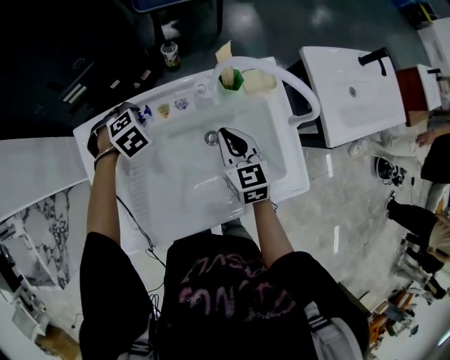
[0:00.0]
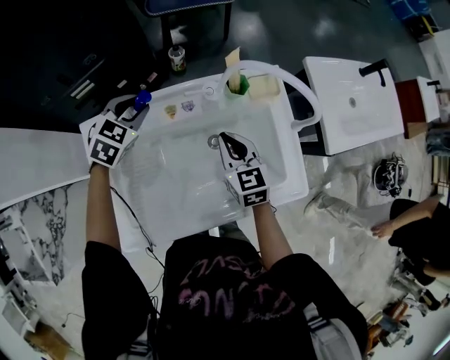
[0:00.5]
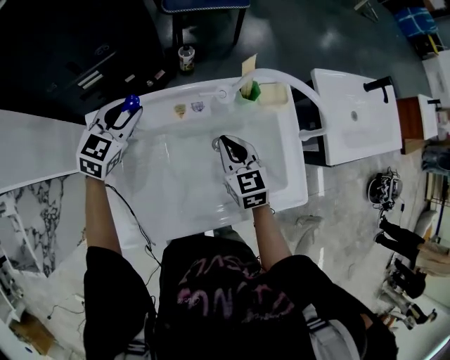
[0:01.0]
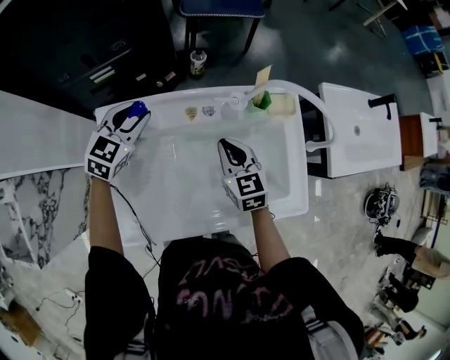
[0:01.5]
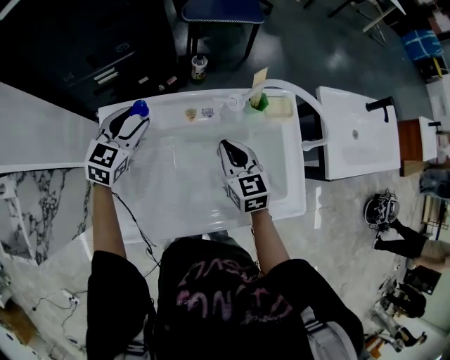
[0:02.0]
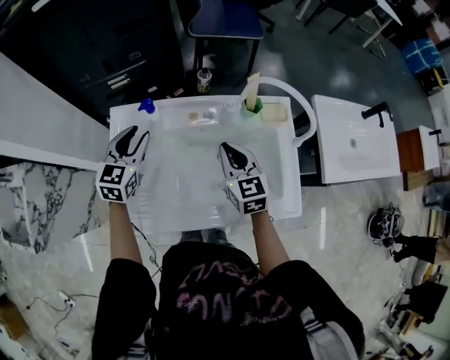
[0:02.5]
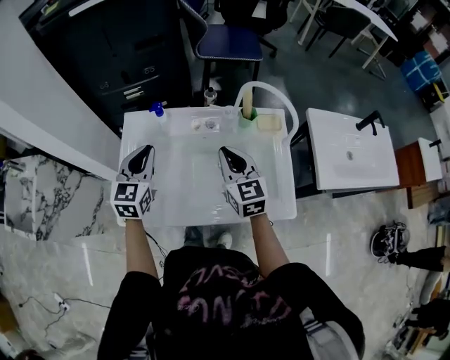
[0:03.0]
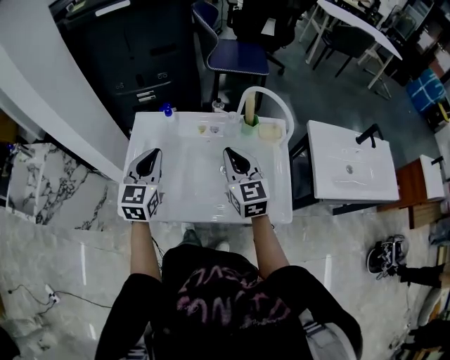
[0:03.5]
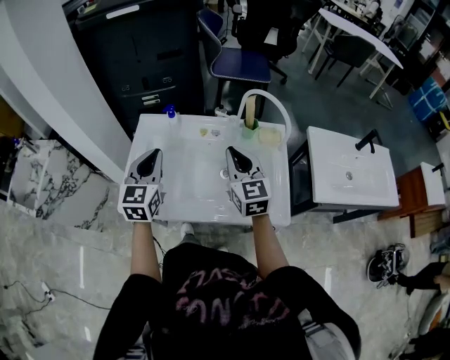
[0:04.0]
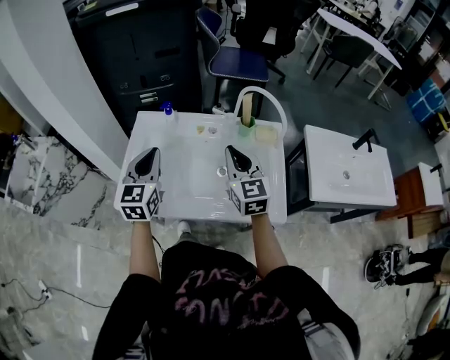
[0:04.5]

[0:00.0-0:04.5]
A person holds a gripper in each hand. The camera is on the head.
0:00.0 to 0:02.0: The right gripper changes place by roughly 5 cm. The left gripper heads upward, covering about 15 cm, and tilts its fingers about 50 degrees upward.
0:02.0 to 0:04.5: The left gripper is displaced backward and upward by roughly 30 cm, turns by approximately 40 degrees, and closes its fingers; the right gripper moves upward and backward, approximately 20 cm, and rotates approximately 20 degrees.

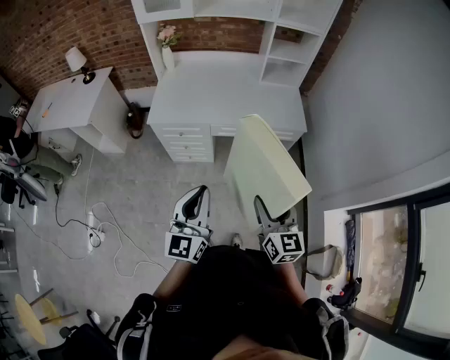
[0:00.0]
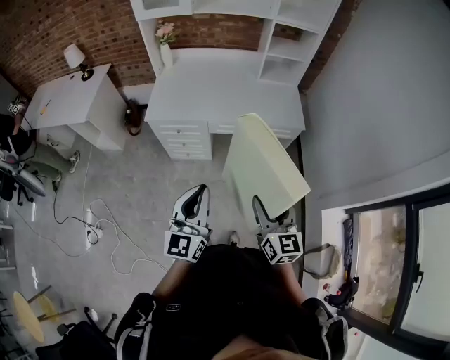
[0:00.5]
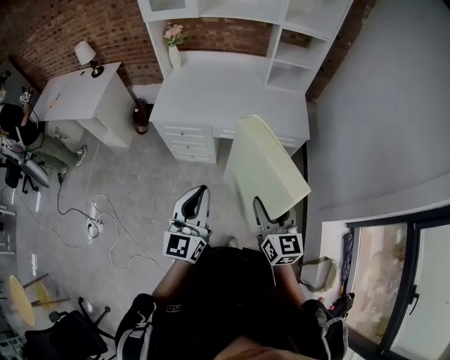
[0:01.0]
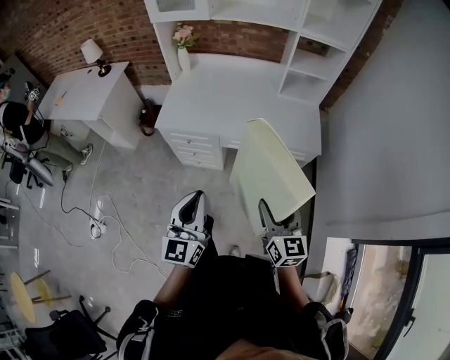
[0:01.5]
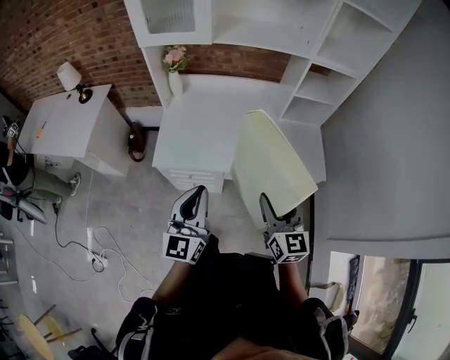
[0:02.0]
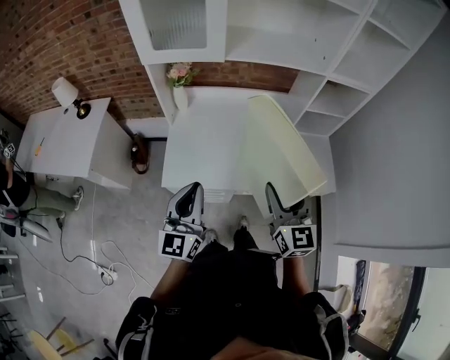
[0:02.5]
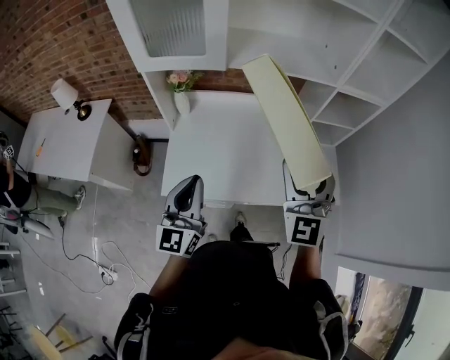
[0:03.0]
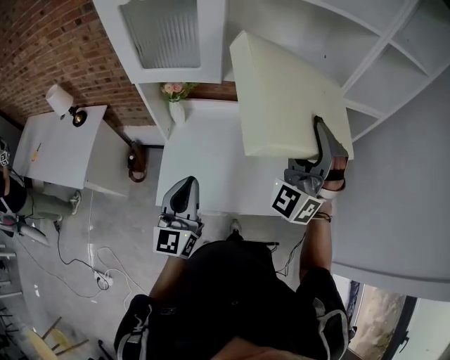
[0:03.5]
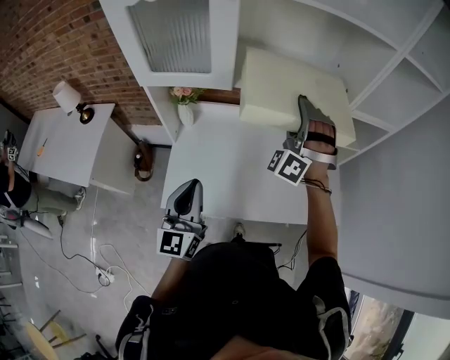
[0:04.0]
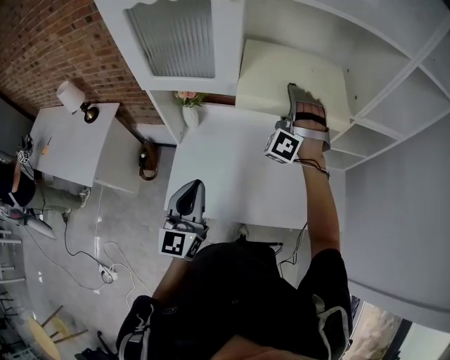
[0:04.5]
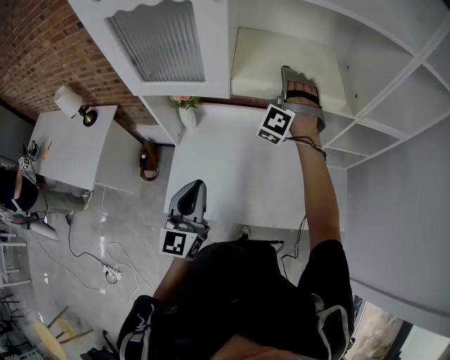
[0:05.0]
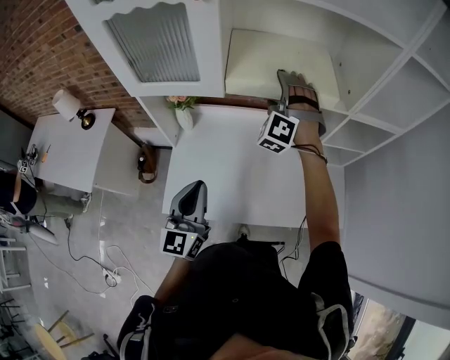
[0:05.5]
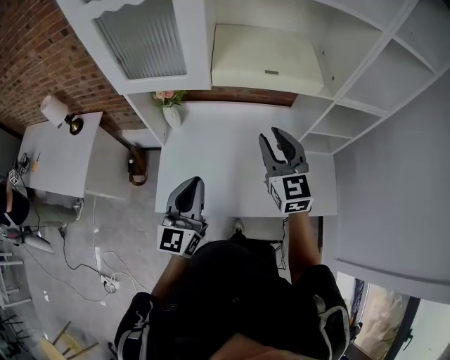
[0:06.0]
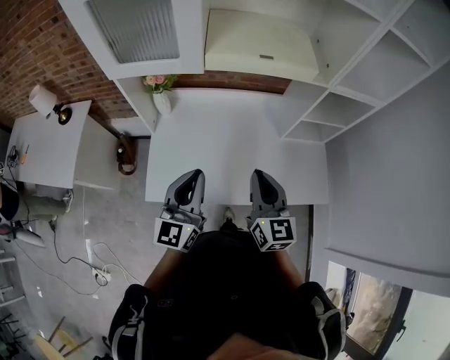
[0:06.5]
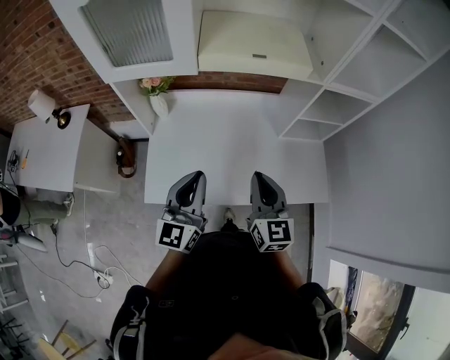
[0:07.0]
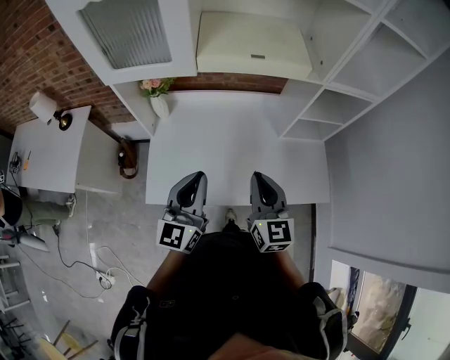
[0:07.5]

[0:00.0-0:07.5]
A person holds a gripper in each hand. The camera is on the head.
0:00.0 to 0:02.0: Both grippers are carried forward, about 60 cm.
0:02.0 to 0:04.0: The left gripper goes roughly 30 cm forward, while the right gripper shifts roughly 50 cm forward, and rotates around the line of its fingers by about 90 degrees, counterclockwise from behind.
0:04.0 to 0:05.5: The right gripper heads forward and downward, covering about 15 cm, and opens its fingers. Meanwhile the left gripper goes roughly 5 cm forward.
0:05.5 to 0:07.5: The left gripper is displaced to the right by approximately 5 cm. Meanwhile the right gripper is displaced backward by approximately 30 cm, twists approximately 80 degrees clockwise, seen from behind, and closes up.

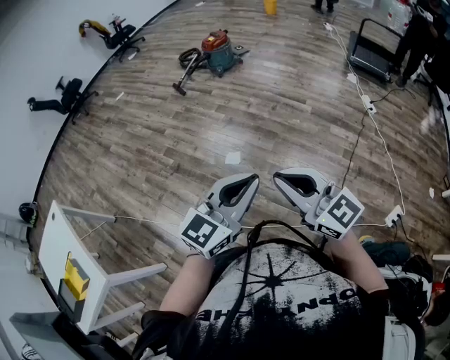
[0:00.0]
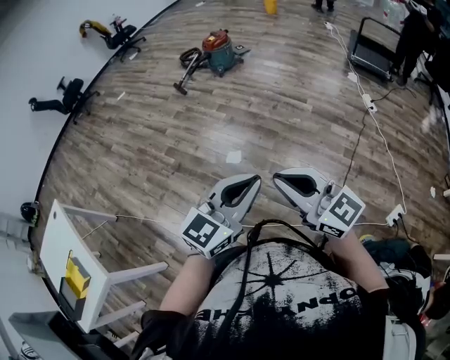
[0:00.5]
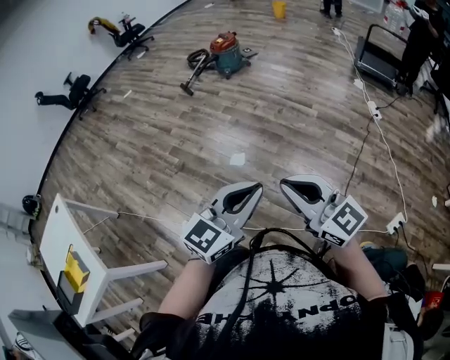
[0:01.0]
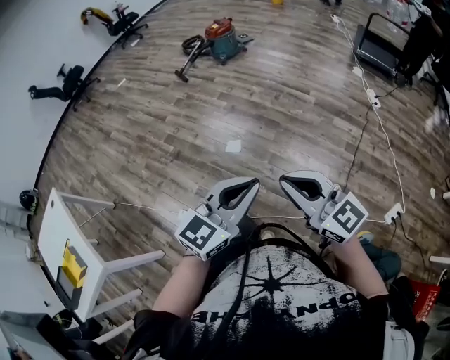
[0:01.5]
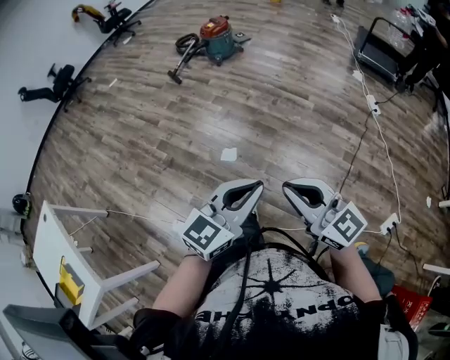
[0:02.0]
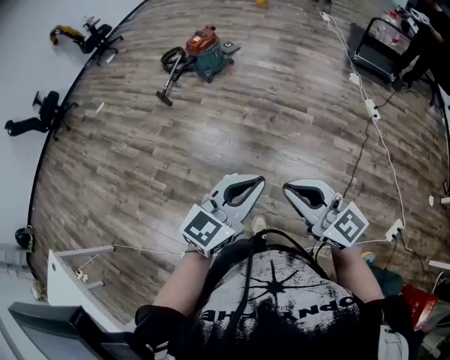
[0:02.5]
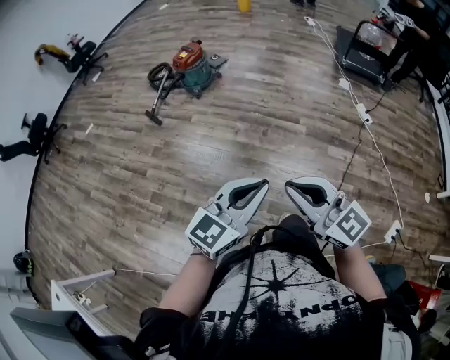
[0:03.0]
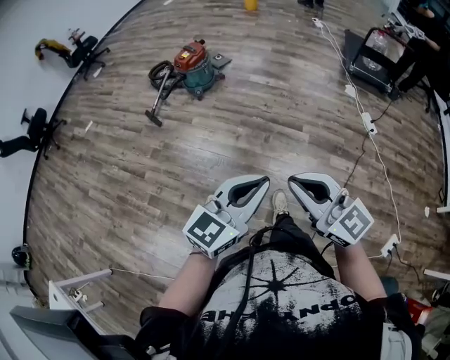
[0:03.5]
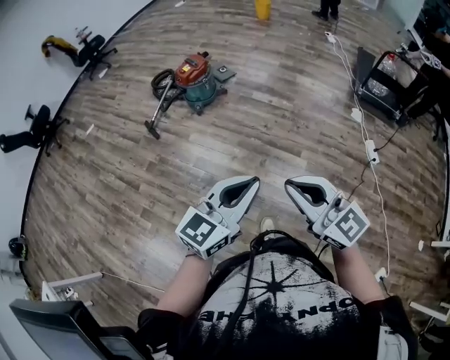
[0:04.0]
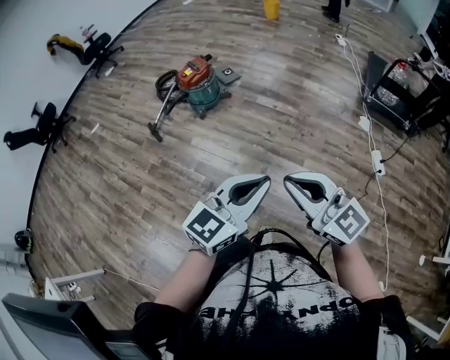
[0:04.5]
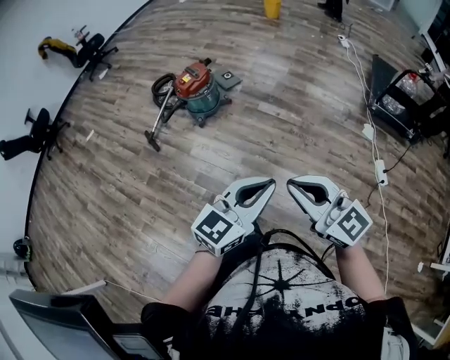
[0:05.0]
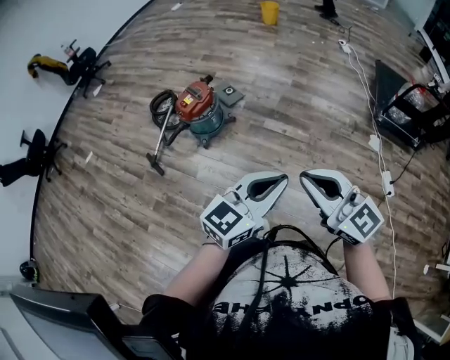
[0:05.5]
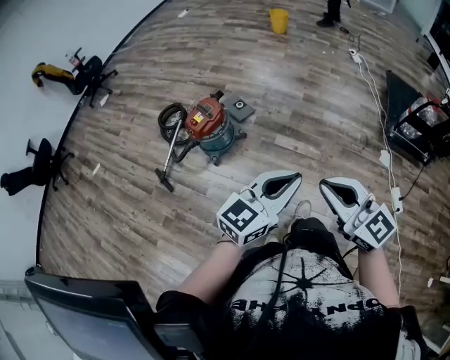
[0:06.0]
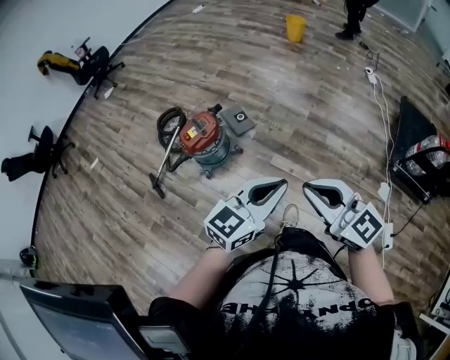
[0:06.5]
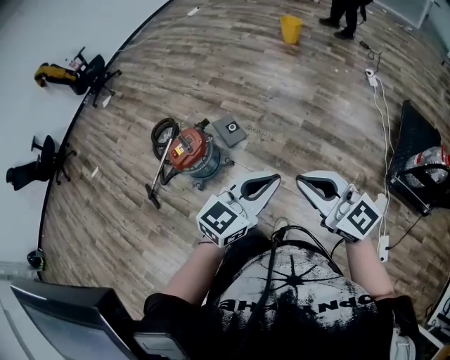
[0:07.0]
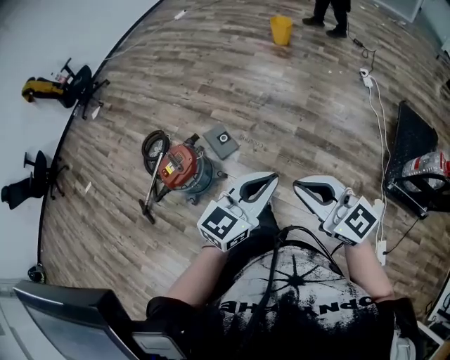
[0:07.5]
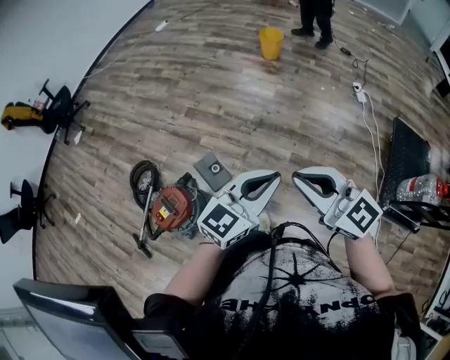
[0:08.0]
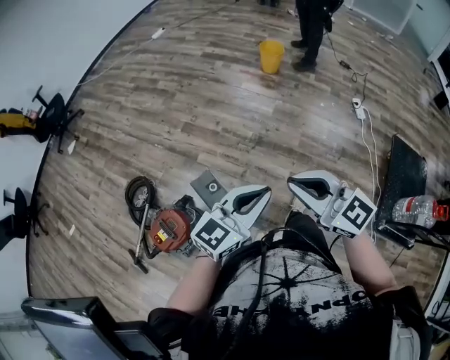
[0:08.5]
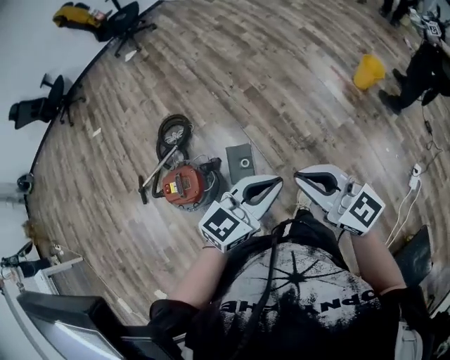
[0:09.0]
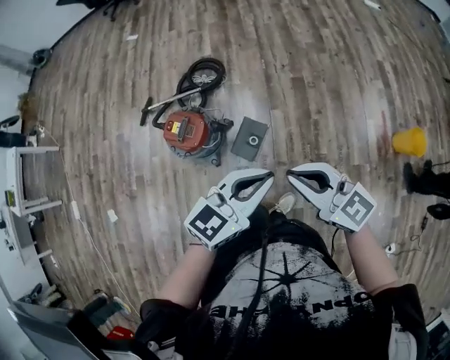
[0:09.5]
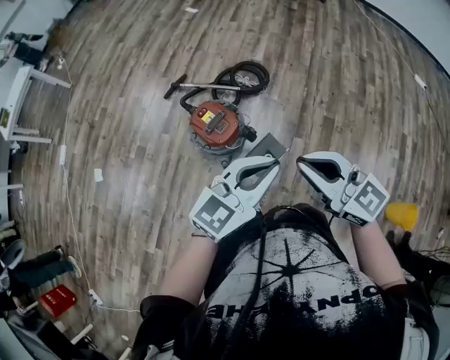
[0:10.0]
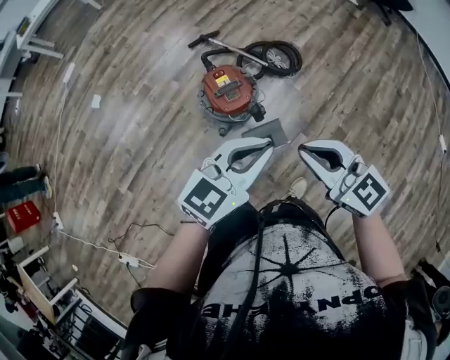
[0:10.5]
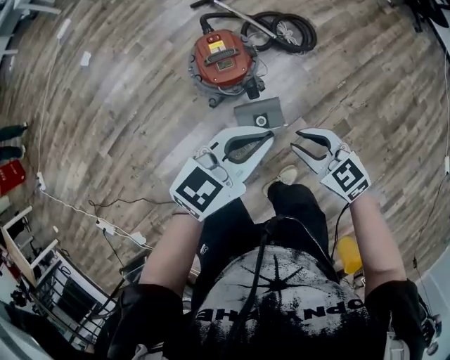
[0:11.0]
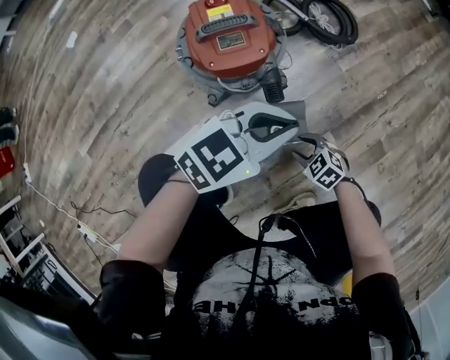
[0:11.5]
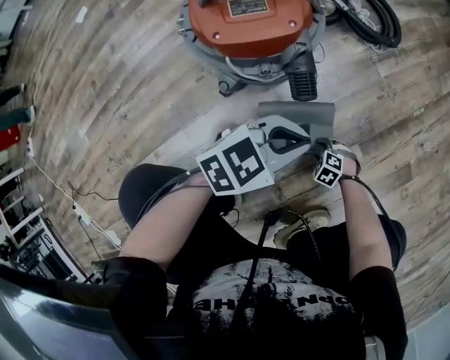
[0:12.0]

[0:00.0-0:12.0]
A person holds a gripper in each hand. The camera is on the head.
0:00.0 to 0:02.0: Both grippers travel together forward, roughly 10 cm.
0:02.0 to 0:04.0: Both grippers are carried forward, some 60 cm.
0:04.0 to 0:06.0: The pair of grippers is taken forward, roughly 50 cm.
0:06.0 to 0:08.0: Both grippers are carried forward, about 70 cm.
0:08.0 to 0:10.0: The left gripper shifts by approximately 35 cm, and changes its angle by approximately 80 degrees. The right gripper ends up approximately 35 cm from where it was, and swivels roughly 90 degrees.
0:10.0 to 0:12.0: The left gripper is displaced downward by roughly 60 cm, and turns by approximately 30 degrees; the right gripper moves downward, approximately 1 m, points its fingers approximately 70 degrees further downward, and opens.

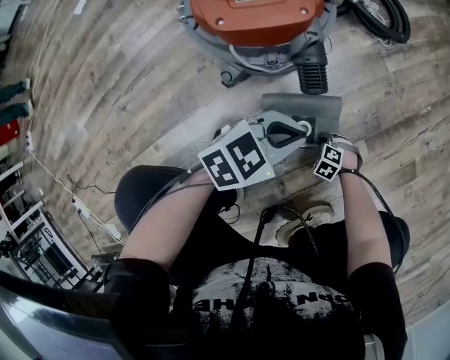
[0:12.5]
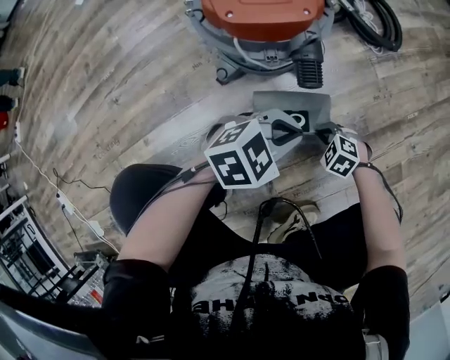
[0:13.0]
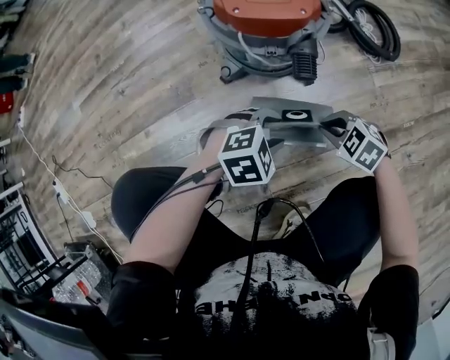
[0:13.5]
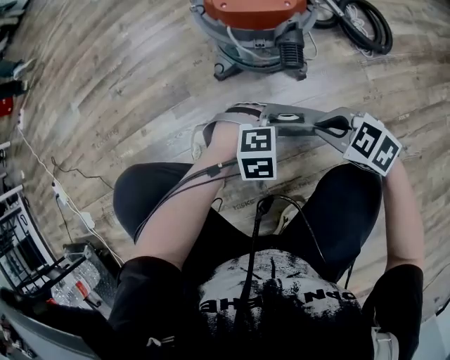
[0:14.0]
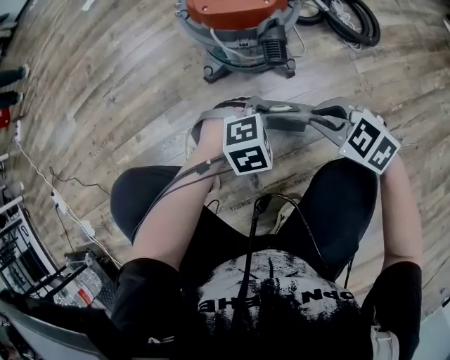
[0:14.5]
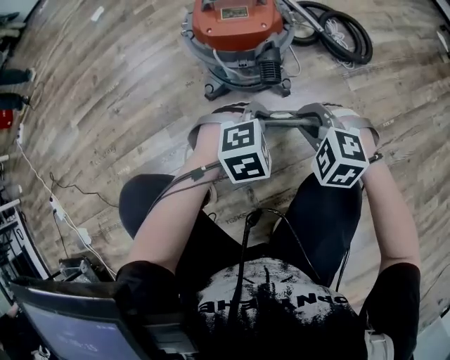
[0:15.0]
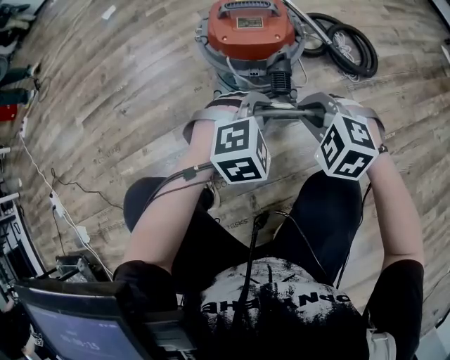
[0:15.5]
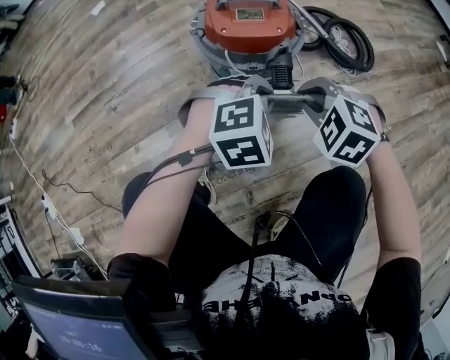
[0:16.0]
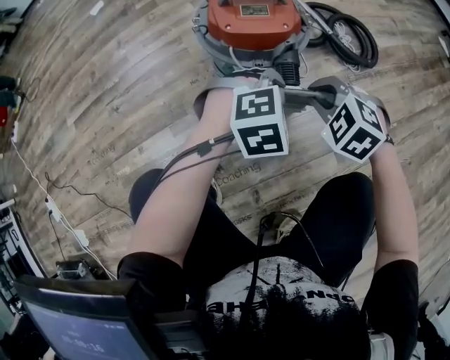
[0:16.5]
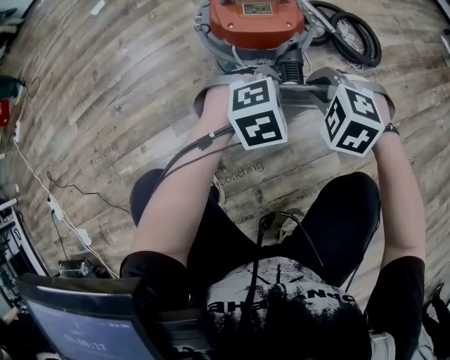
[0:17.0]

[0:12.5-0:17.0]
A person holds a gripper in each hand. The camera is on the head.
0:12.5 to 0:14.5: The left gripper angles its fingers downward, by about 30 degrees, and opens, then closes again; the right gripper is displaced upward by roughly 35 cm, and tilts its fingers some 30 degrees upward.
0:14.5 to 0:17.0: The right gripper ends up approximately 15 cm from where it was, and turns by some 30 degrees, while the left gripper changes place by some 15 cm.
